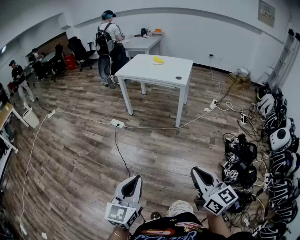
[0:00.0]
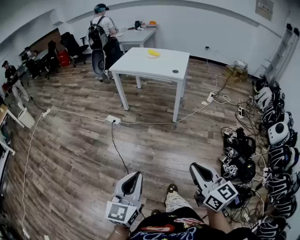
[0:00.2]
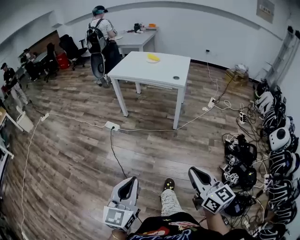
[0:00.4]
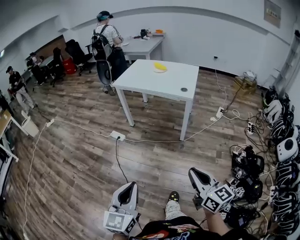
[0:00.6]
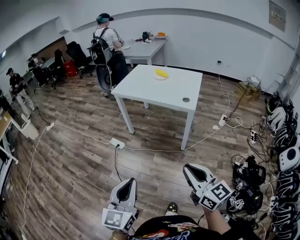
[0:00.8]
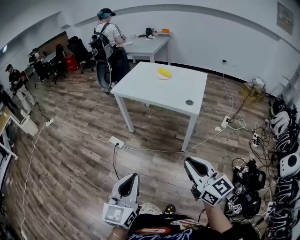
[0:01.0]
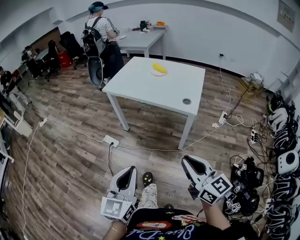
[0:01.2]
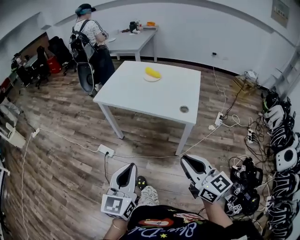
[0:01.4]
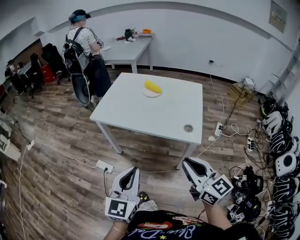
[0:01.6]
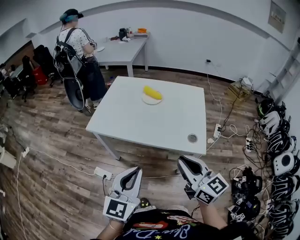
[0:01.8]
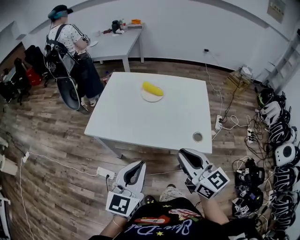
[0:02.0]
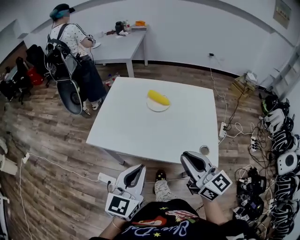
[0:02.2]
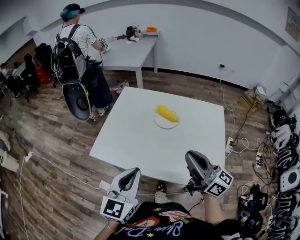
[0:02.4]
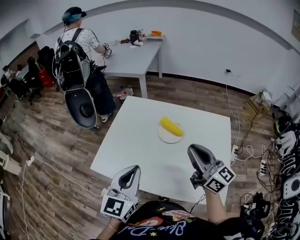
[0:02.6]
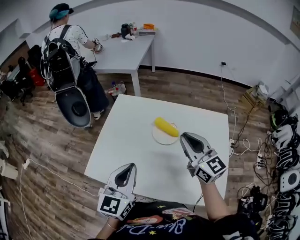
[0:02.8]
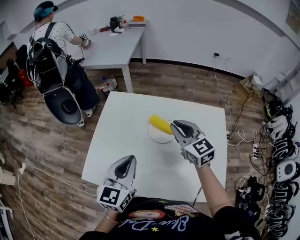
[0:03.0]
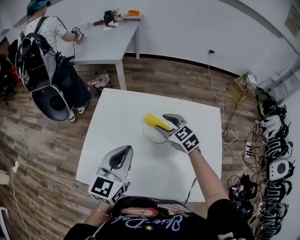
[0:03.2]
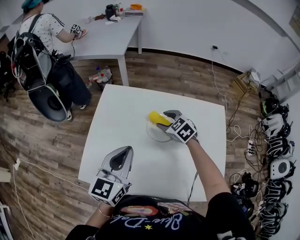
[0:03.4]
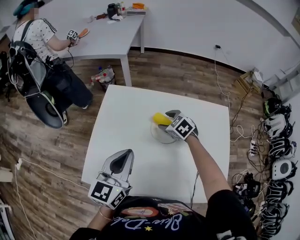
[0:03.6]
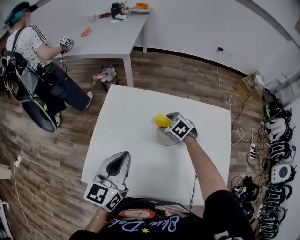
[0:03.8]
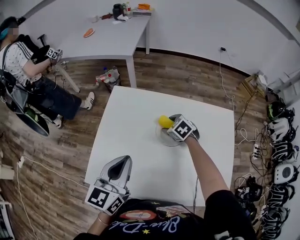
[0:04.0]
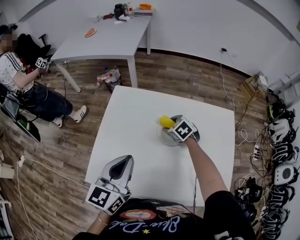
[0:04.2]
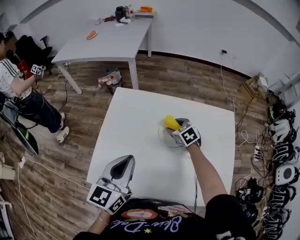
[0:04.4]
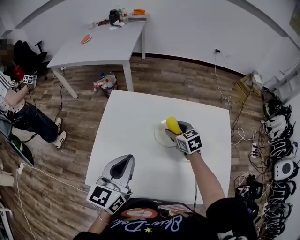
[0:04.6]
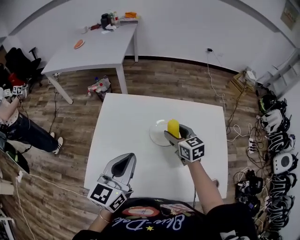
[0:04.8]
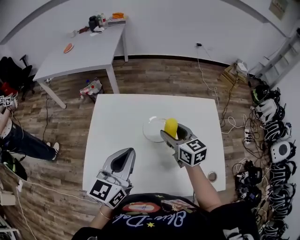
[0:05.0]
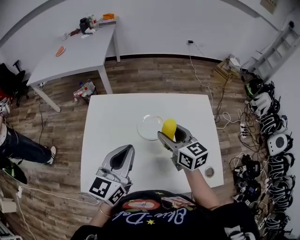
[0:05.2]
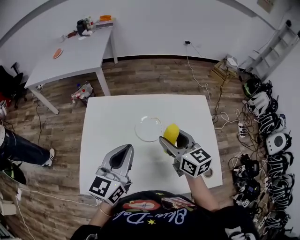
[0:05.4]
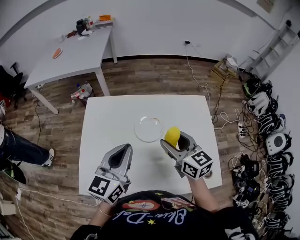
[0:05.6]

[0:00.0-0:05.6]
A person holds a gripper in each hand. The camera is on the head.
0:00.0 to 0:01.4: The pair of grippers is taken forward, some 60 cm.
0:01.4 to 0:02.8: The two grippers travel together, forward, roughly 60 cm.
0:02.8 to 0:04.2: The left gripper moves forward, roughly 10 cm; the right gripper travels downward and forward by roughly 30 cm, points its fingers approximately 60 degrees further downward, and opens its fingers.
0:04.2 to 0:05.6: The right gripper shifts some 25 cm upward, backward and to the right, and tilts its fingers some 40 degrees upward, while the left gripper goes some 5 cm to the right.

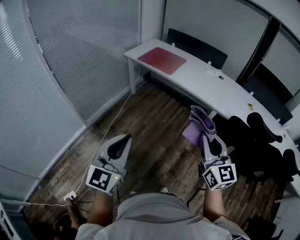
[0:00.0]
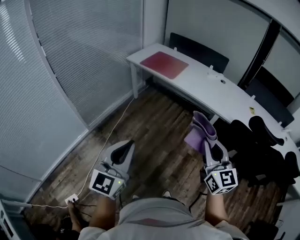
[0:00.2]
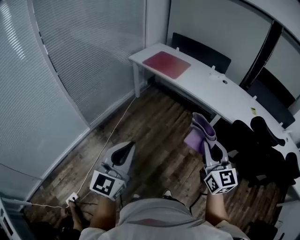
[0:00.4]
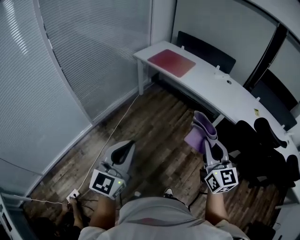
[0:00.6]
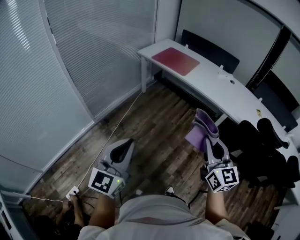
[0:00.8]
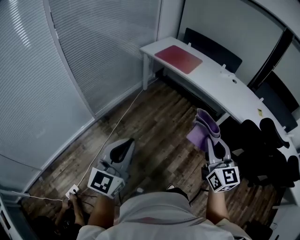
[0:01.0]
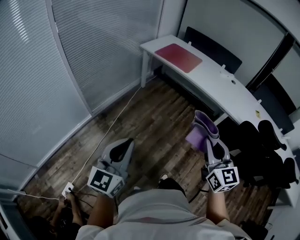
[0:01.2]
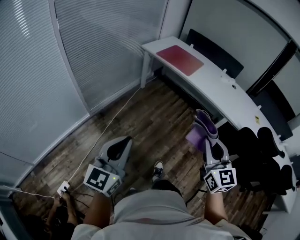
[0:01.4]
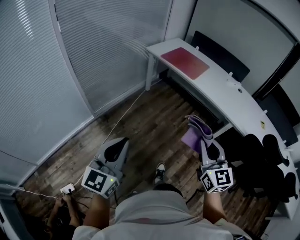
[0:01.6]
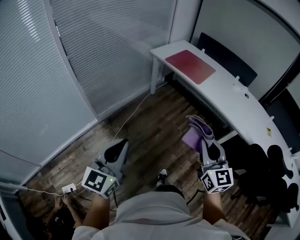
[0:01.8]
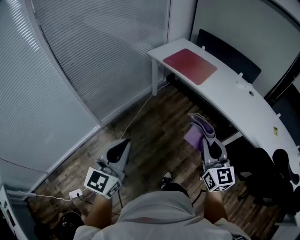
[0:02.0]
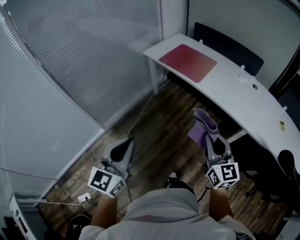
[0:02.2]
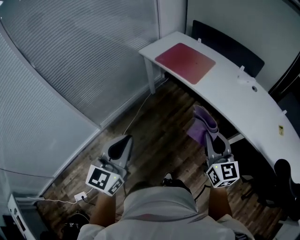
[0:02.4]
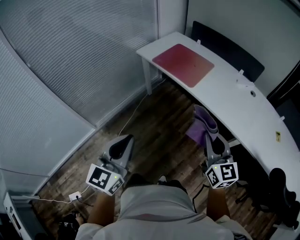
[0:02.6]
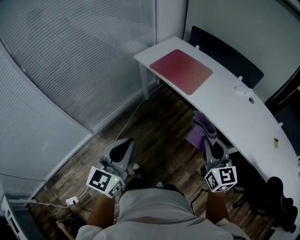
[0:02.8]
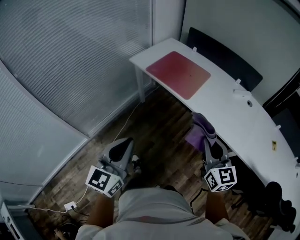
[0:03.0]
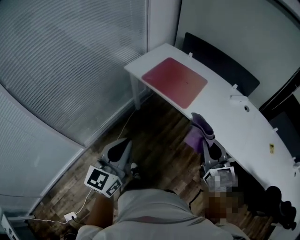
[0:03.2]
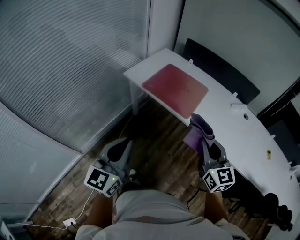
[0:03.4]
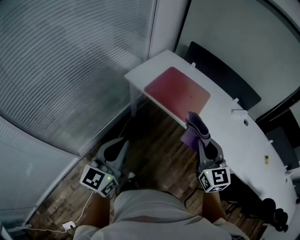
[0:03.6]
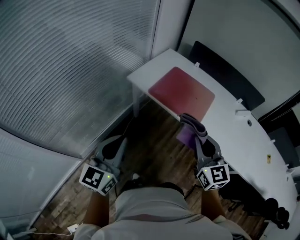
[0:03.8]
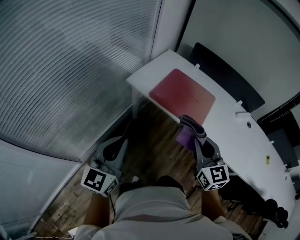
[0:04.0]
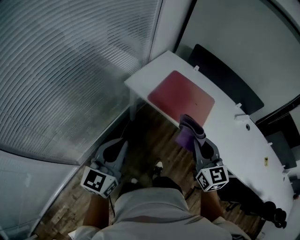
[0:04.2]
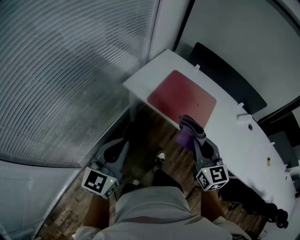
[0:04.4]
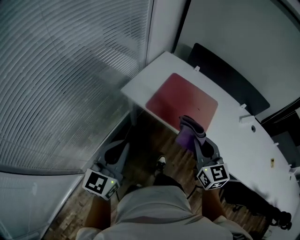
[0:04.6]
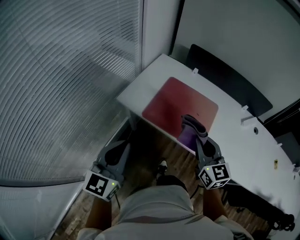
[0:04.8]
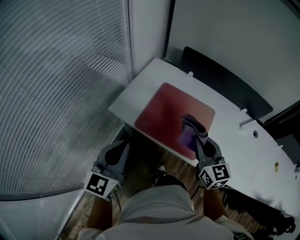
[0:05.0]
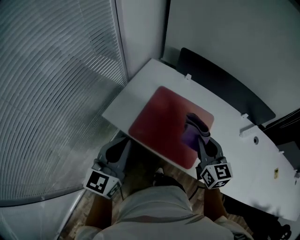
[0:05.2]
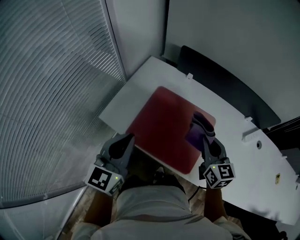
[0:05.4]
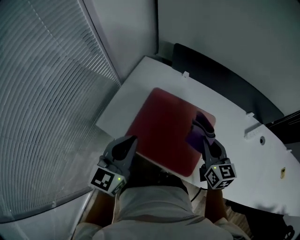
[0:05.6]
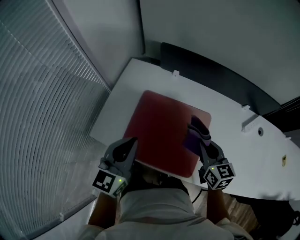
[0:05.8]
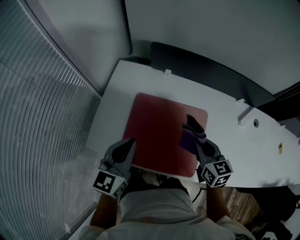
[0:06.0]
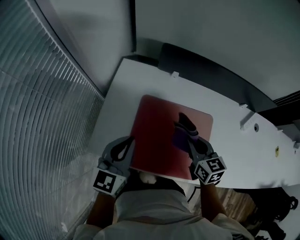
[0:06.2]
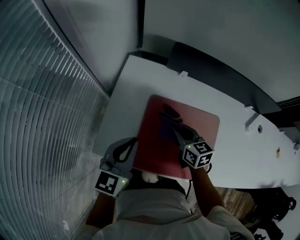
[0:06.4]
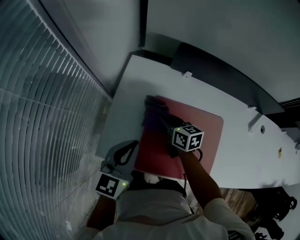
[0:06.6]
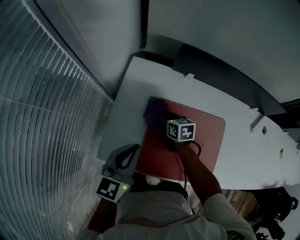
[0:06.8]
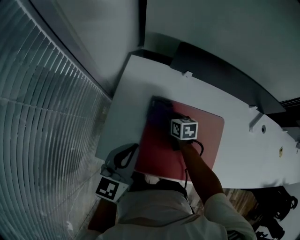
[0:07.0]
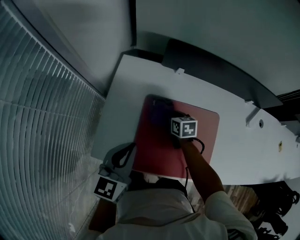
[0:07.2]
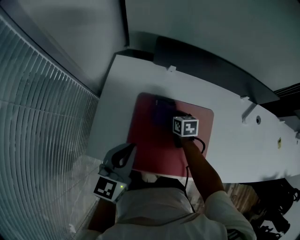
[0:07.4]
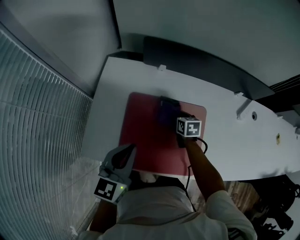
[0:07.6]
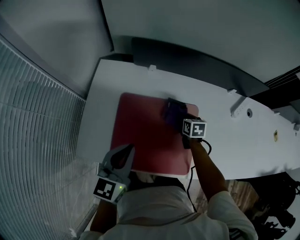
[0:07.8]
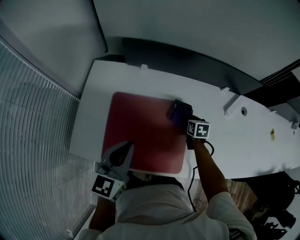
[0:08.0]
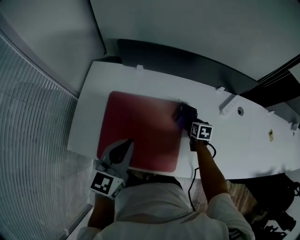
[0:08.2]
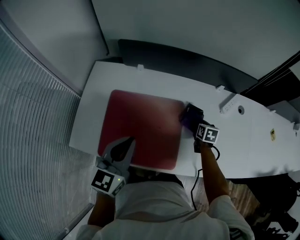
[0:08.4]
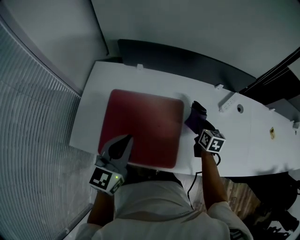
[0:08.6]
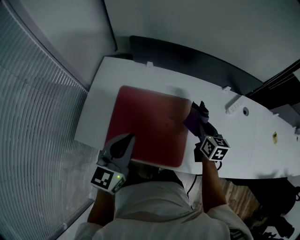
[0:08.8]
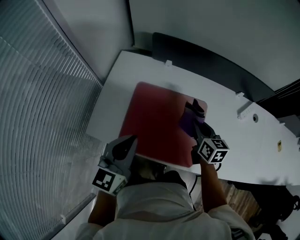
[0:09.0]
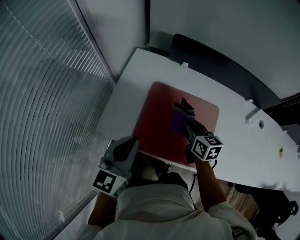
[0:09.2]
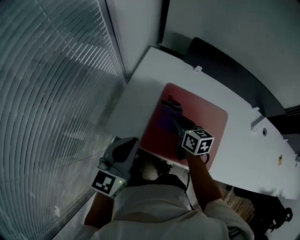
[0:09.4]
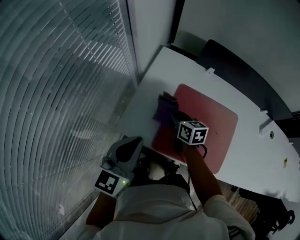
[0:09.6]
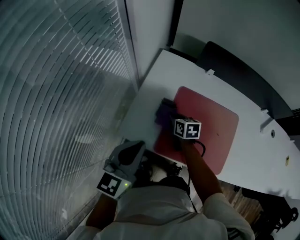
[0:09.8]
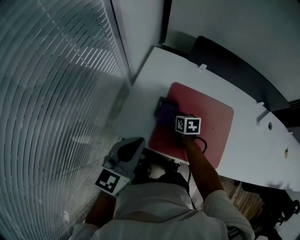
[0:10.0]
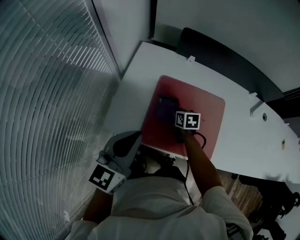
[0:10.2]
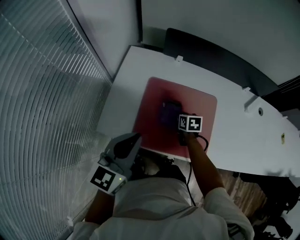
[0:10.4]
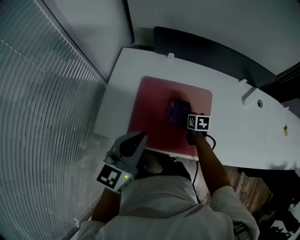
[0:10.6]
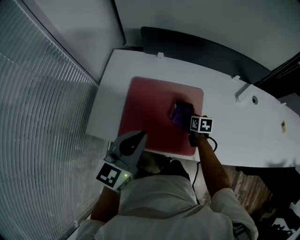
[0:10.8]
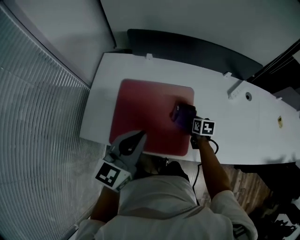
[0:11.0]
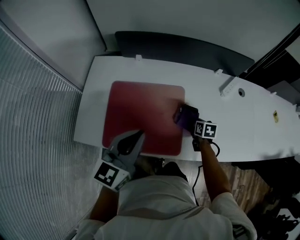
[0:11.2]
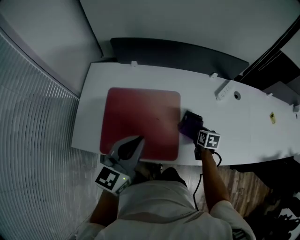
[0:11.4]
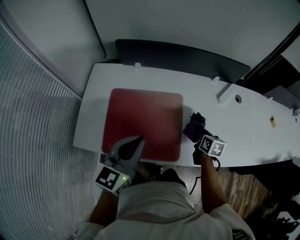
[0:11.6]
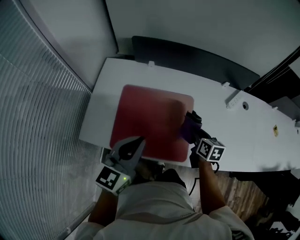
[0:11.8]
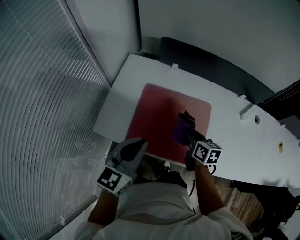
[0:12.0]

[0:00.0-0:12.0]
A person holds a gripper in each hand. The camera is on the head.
0:00.0 to 0:01.6: The two grippers go some 15 cm to the left.
0:01.6 to 0:03.0: Both grippers are carried forward, about 40 cm.
0:03.0 to 0:04.4: The two grippers travel together, forward and to the left, some 40 cm.
0:04.4 to 0:06.0: The pair of grippers is taken forward, about 50 cm. The left gripper rotates roughly 20 degrees. Meanwhile the right gripper turns by about 30 degrees.
0:06.0 to 0:07.6: The left gripper goes to the left and returns, approximately 10 cm each way. The right gripper heads downward and forward, covering approximately 25 cm, goes to the left and returns, approximately 25 cm each way, and changes its angle by about 20 degrees.
0:07.6 to 0:09.0: The left gripper goes roughly 5 cm backward, and goes to the right and returns, roughly 15 cm each way. The right gripper moves upward and backward, approximately 20 cm, reaches about 30 cm to the right, then returns, and swivels some 20 degrees.
0:09.0 to 0:10.4: The left gripper shifts approximately 10 cm to the left, while the right gripper moves downward and to the left, some 20 cm, and swivels roughly 20 degrees.
0:10.4 to 0:12.0: The right gripper goes some 15 cm upward and backward, and travels to the right and back again, about 35 cm each way; the left gripper travels to the right by about 10 cm.

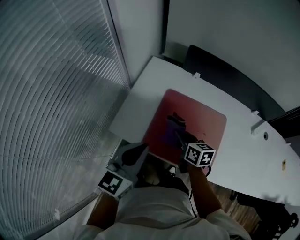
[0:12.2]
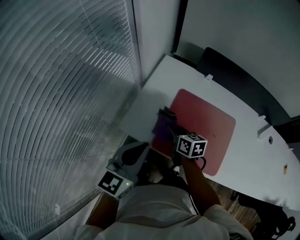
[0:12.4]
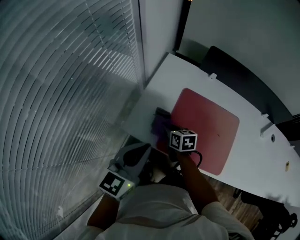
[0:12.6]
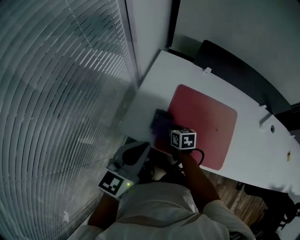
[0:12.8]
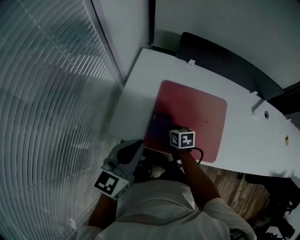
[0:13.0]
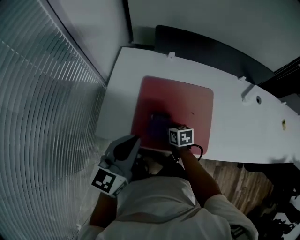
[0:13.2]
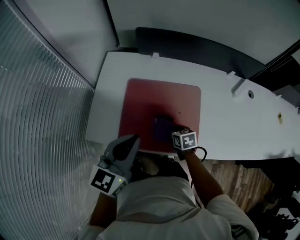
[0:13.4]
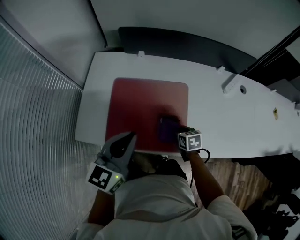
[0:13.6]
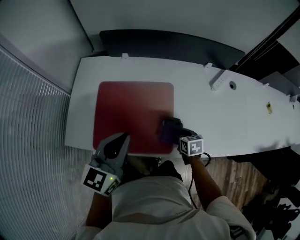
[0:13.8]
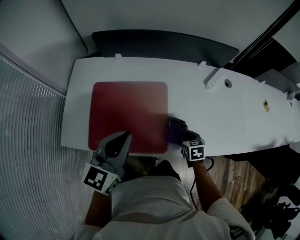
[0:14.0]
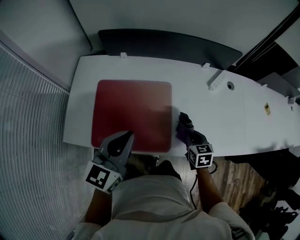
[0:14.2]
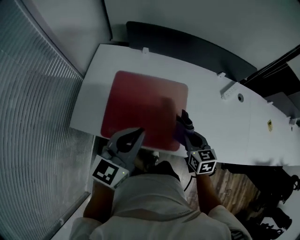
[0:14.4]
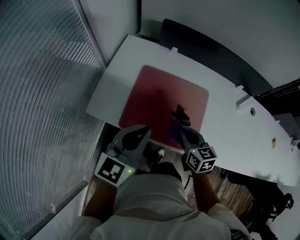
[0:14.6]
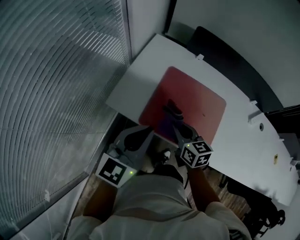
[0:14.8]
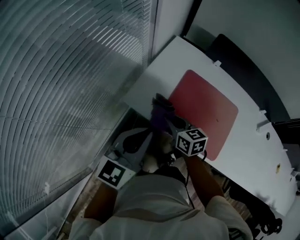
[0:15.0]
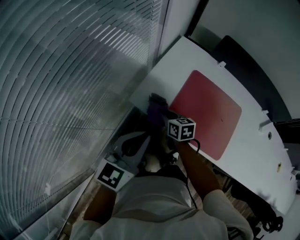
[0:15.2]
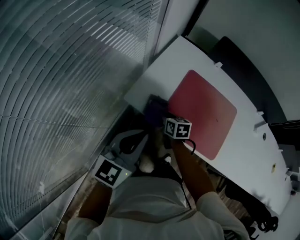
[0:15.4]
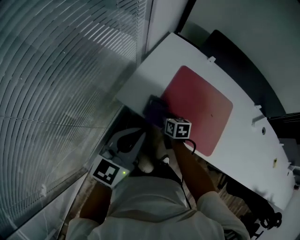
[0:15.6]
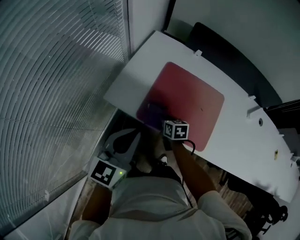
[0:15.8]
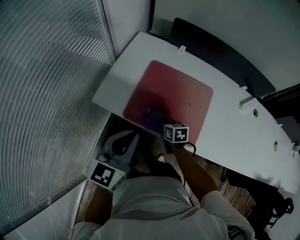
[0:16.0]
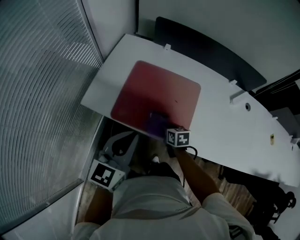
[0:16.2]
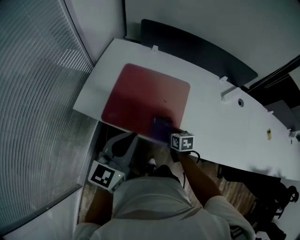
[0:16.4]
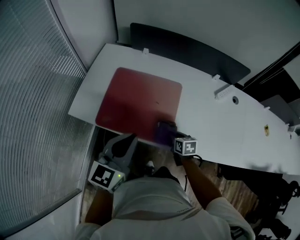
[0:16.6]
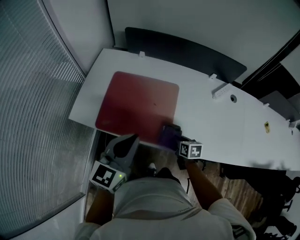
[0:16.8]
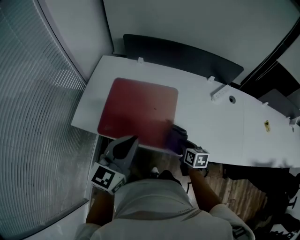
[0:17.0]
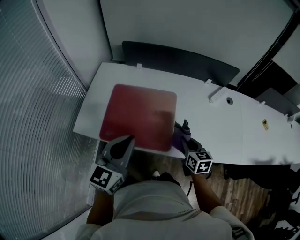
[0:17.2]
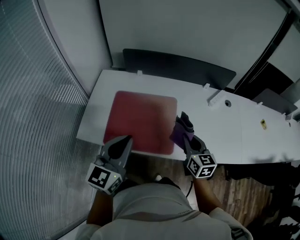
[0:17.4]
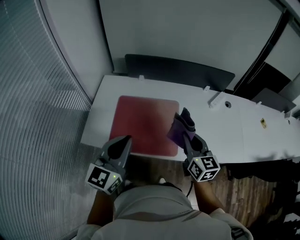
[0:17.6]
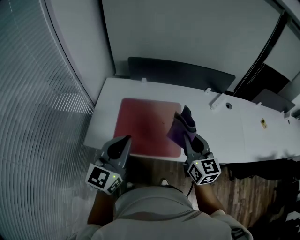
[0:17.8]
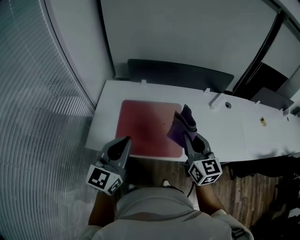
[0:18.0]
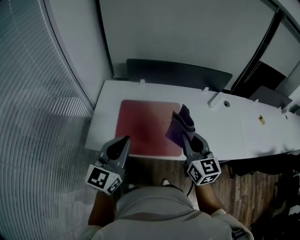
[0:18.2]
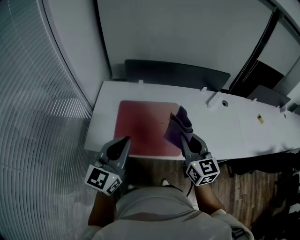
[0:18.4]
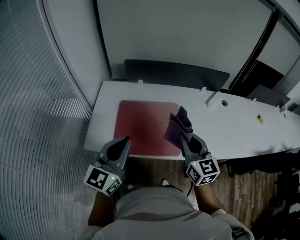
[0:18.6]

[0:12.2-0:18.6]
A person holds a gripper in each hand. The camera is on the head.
0:12.2 to 0:13.8: The left gripper heads to the right, covering roughly 20 cm. The right gripper is displaced to the right and downward by some 35 cm, and turns by about 30 degrees.
0:13.8 to 0:15.4: The left gripper moves roughly 35 cm. Meanwhile the right gripper reaches some 15 cm upward, then returns, and changes its angle by about 30 degrees.
0:15.4 to 0:17.0: Both grippers move to the right, some 40 cm. The right gripper rotates approximately 30 degrees.
0:17.0 to 0:18.6: The right gripper moves upward and to the left, approximately 30 cm, and points its fingers roughly 30 degrees further upward; the left gripper is displaced to the left and upward by about 15 cm.
